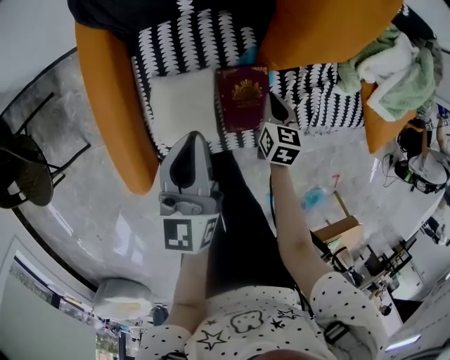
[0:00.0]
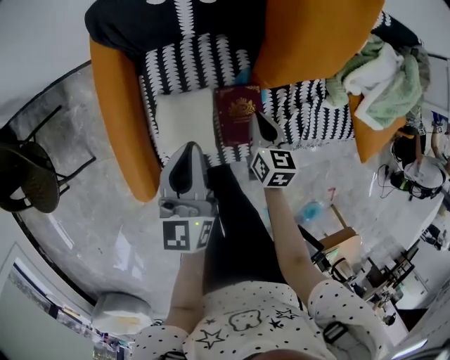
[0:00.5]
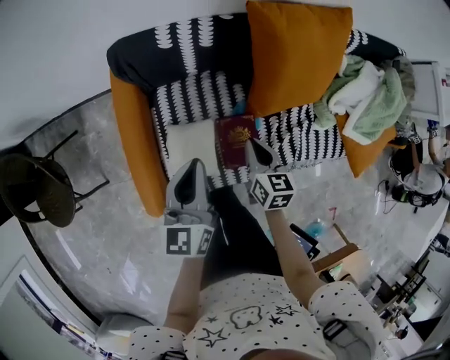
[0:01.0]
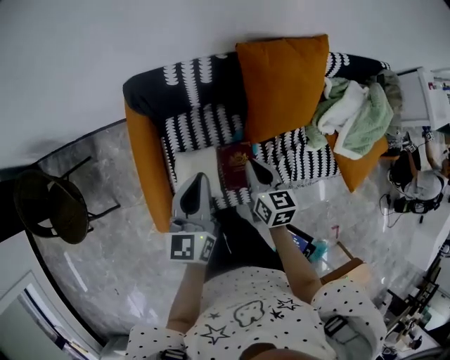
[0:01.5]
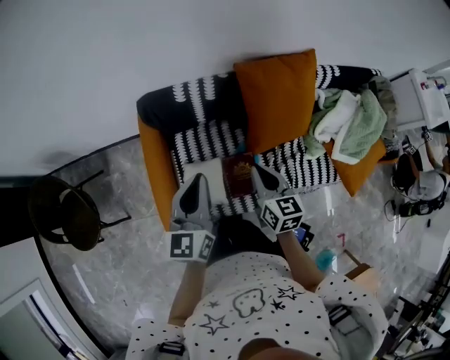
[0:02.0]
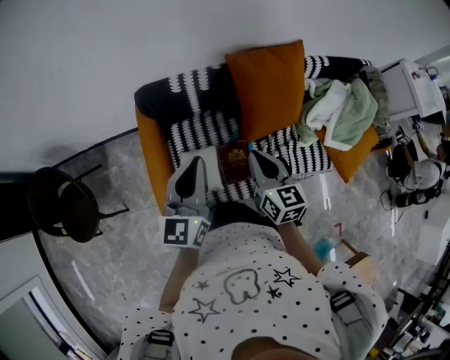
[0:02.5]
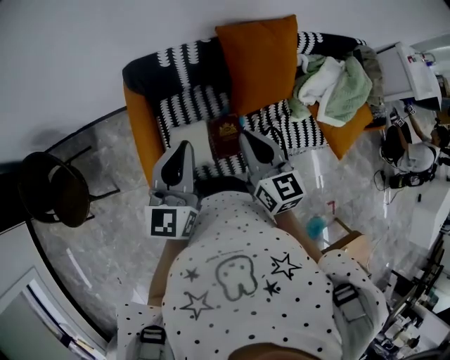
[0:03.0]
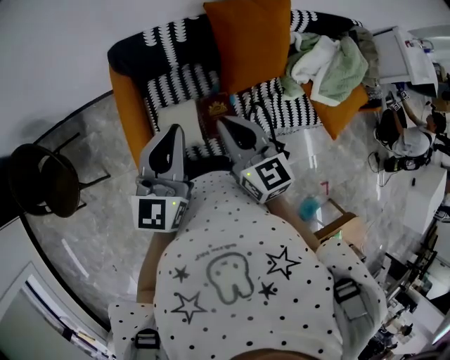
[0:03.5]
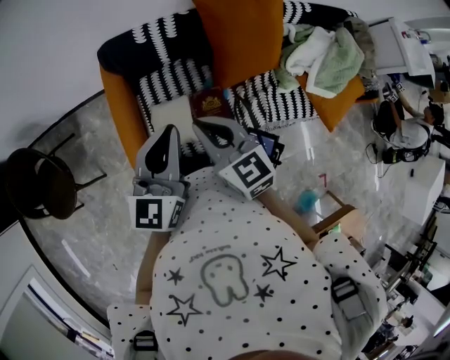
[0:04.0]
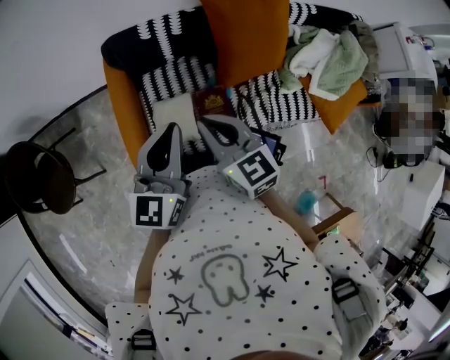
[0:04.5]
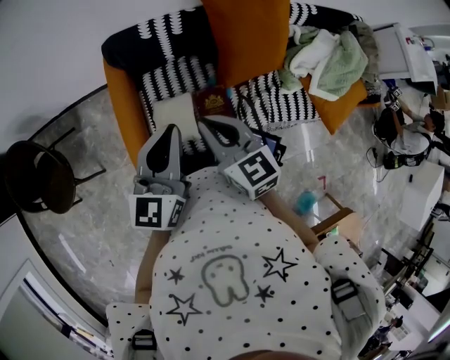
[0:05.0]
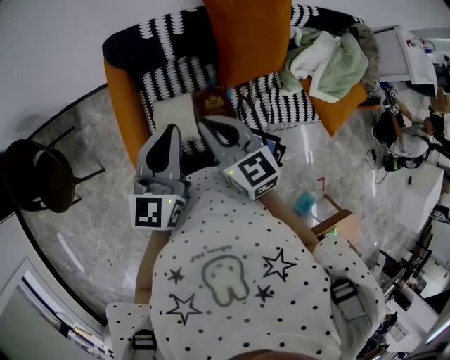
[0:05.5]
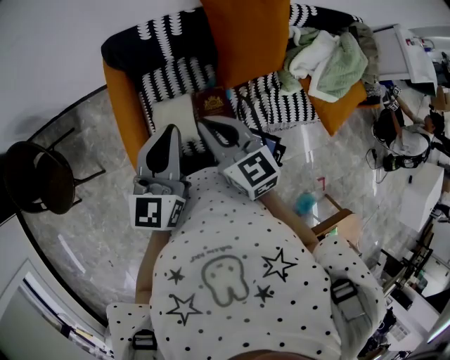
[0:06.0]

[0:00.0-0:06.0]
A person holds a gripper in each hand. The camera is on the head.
0:00.0 to 0:02.0: Both grippers travel together upward, approximately 30 cm. The right gripper rotates approximately 30 degrees.
0:02.0 to 0:04.0: The right gripper travels to the left, upward and backward by about 15 cm, and changes its angle by some 20 degrees, while the left gripper is displaced backward by about 10 cm.
0:04.0 to 0:06.0: Neither gripper changes place.

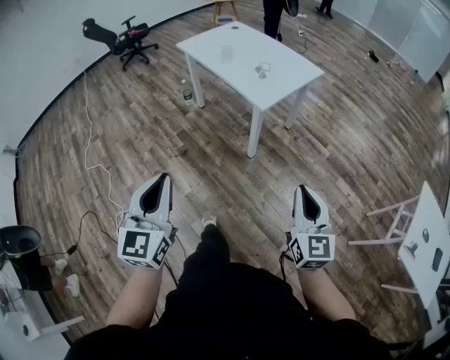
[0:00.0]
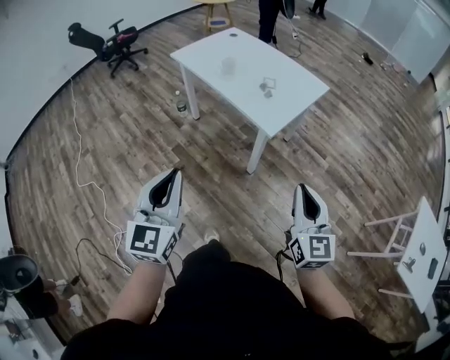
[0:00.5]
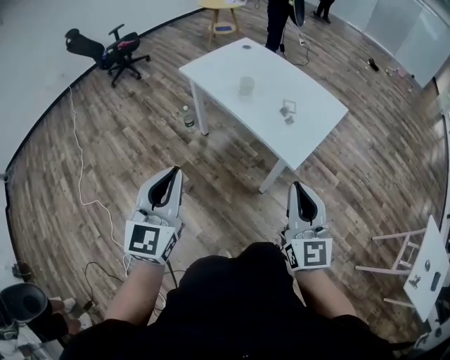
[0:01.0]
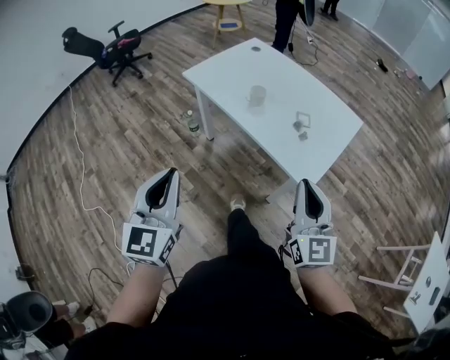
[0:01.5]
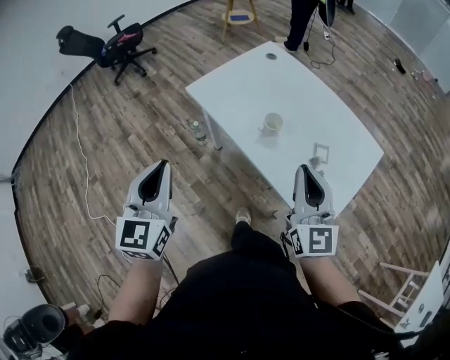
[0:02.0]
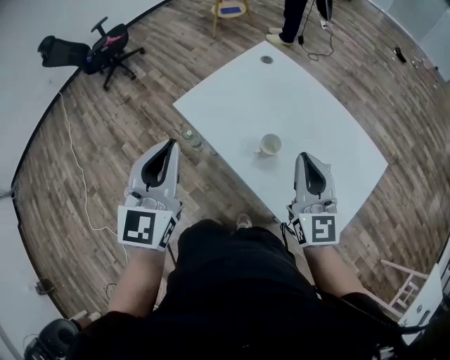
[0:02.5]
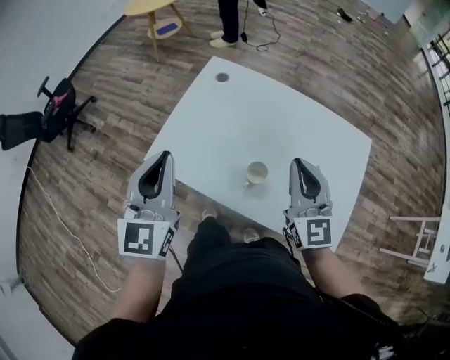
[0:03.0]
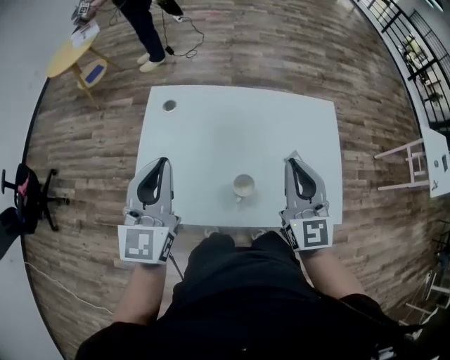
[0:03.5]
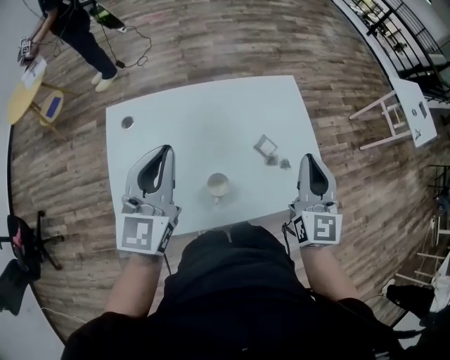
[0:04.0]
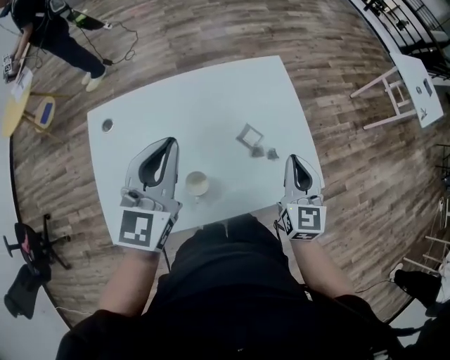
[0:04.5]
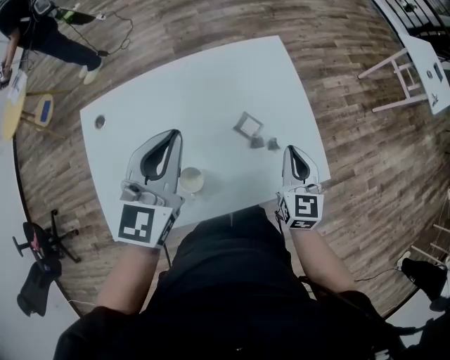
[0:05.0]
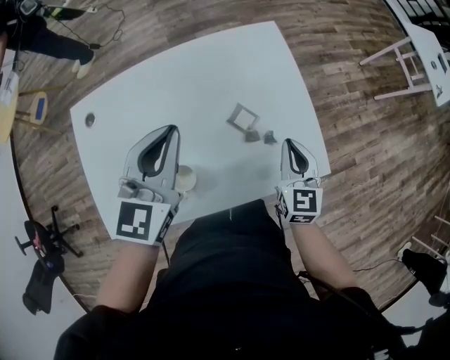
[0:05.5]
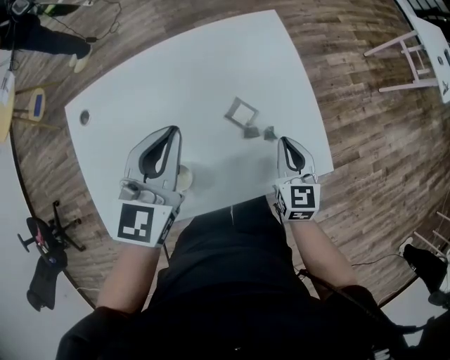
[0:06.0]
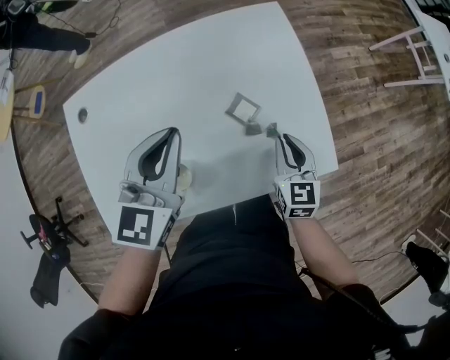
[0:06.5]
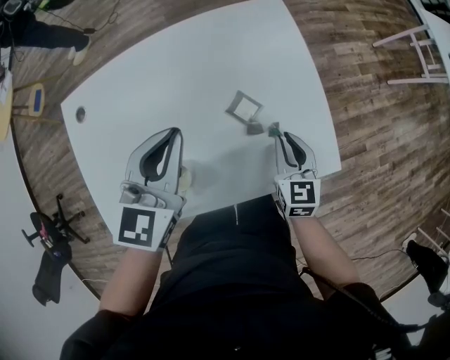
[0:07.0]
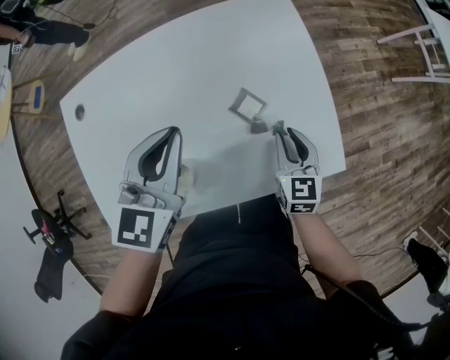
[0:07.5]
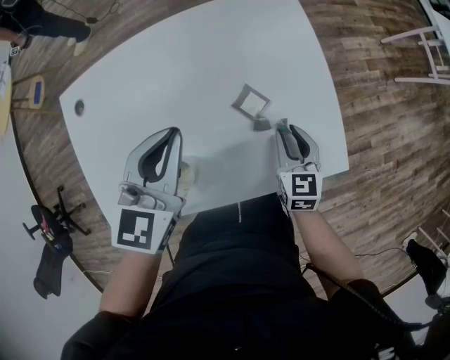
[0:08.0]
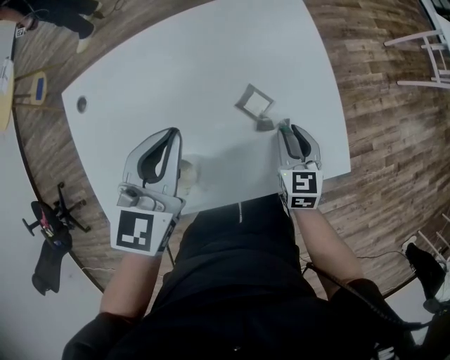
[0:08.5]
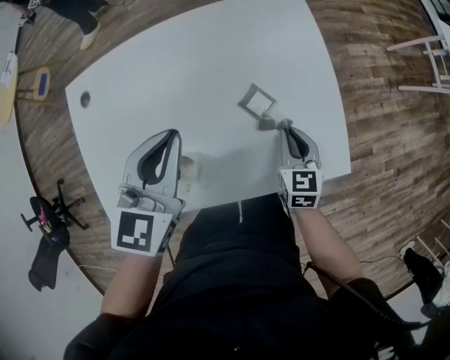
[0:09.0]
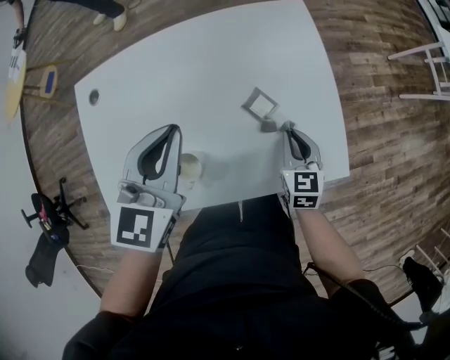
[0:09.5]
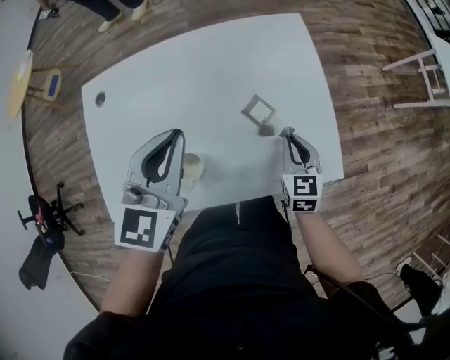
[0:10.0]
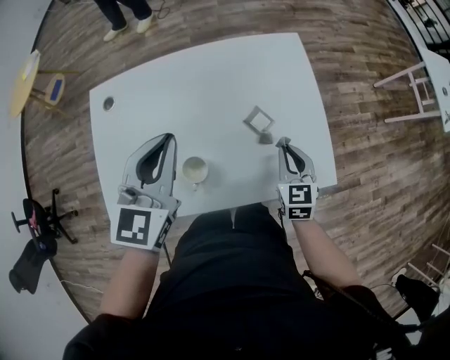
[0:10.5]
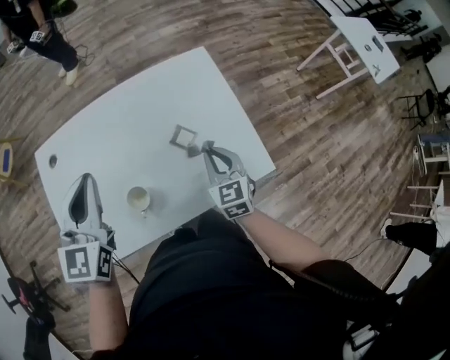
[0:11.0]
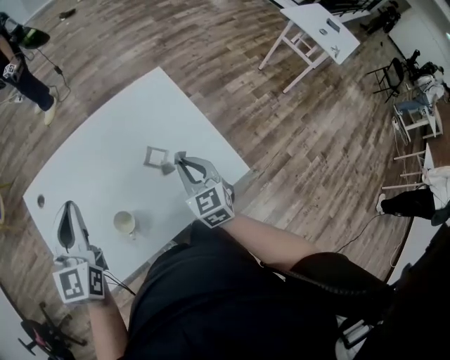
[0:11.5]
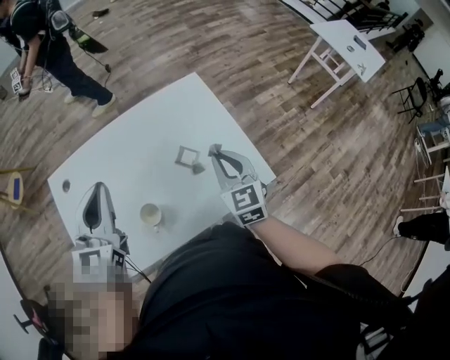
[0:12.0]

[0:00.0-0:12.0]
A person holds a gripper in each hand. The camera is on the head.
0:00.0 to 0:02.0: Both grippers are carried forward and to the left, roughly 60 cm.
0:02.0 to 0:04.0: The right gripper turns by approximately 70 degrees, while the left gripper moves some 40 cm, and changes its angle by roughly 70 degrees.
0:04.0 to 0:06.0: The right gripper goes about 20 cm downward, and rotates about 30 degrees. Meanwhile the left gripper travels to the right, forward and downward by some 15 cm, and swivels about 20 degrees.
0:06.0 to 0:08.0: The right gripper shifts some 5 cm downward, and opens.
0:08.0 to 0:10.0: The right gripper closes.
0:10.0 to 0:12.0: The right gripper is displaced upward by about 10 cm. Meanwhile the left gripper moves to the left, approximately 5 cm.

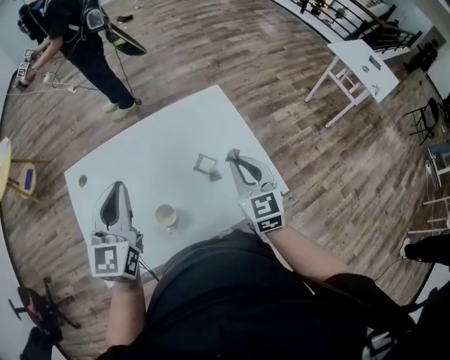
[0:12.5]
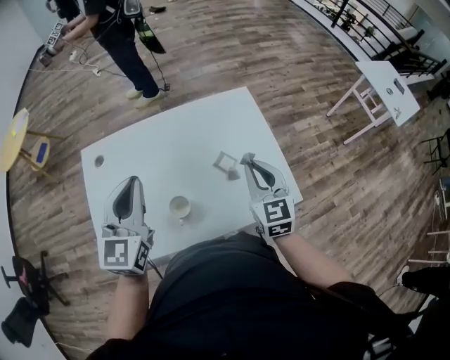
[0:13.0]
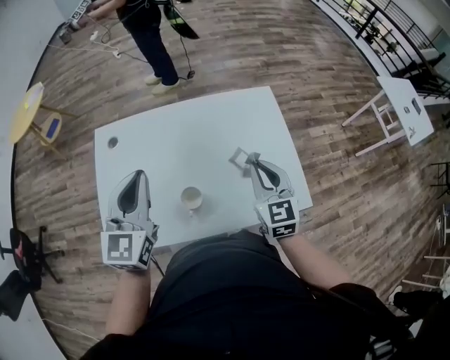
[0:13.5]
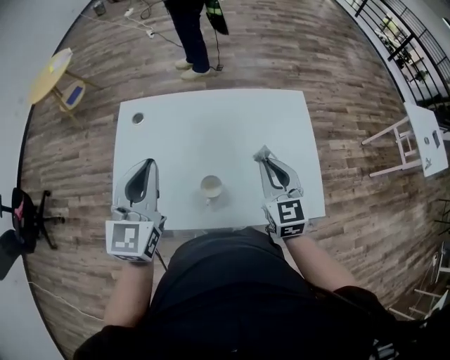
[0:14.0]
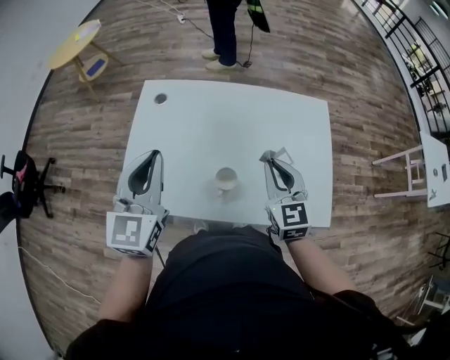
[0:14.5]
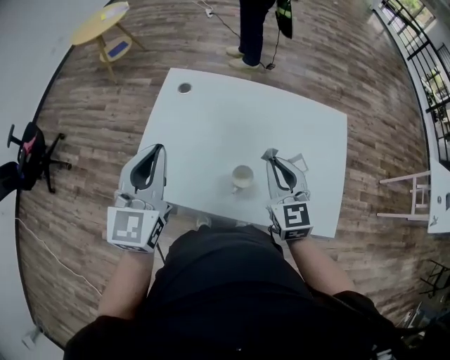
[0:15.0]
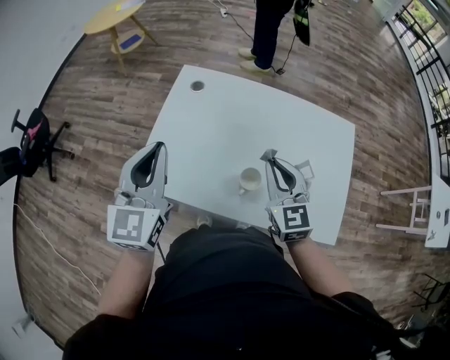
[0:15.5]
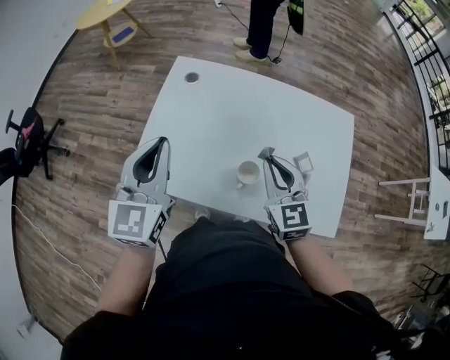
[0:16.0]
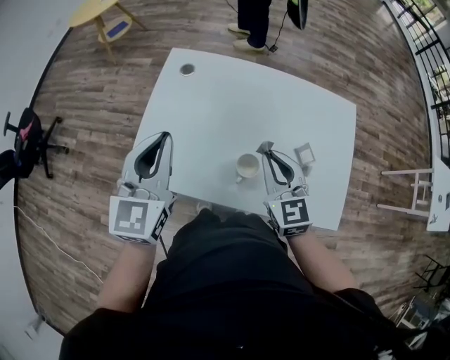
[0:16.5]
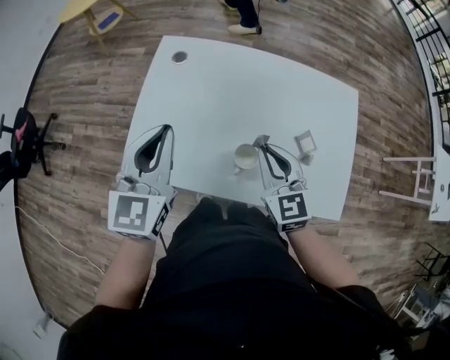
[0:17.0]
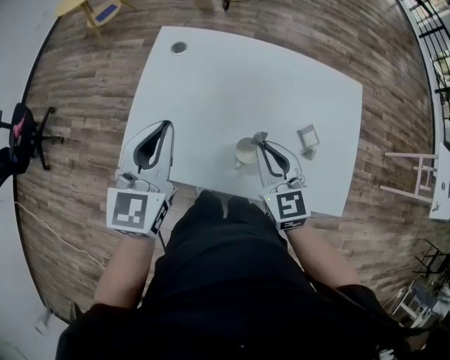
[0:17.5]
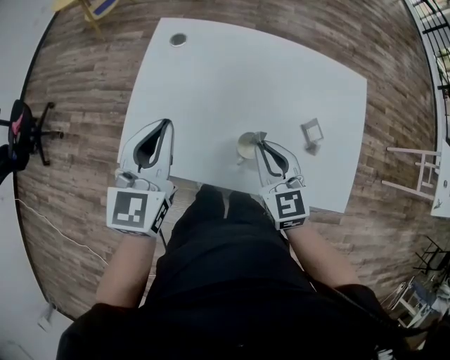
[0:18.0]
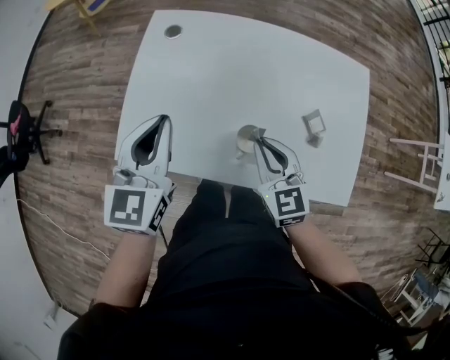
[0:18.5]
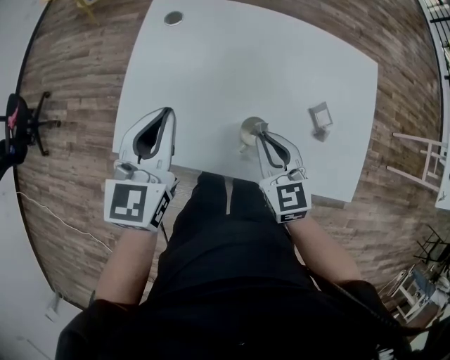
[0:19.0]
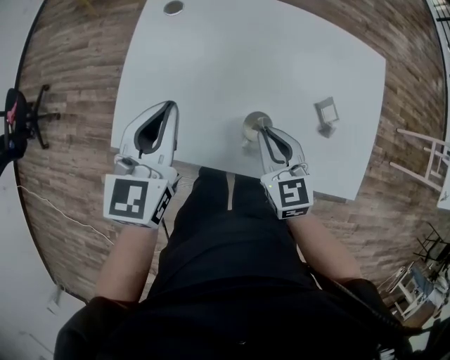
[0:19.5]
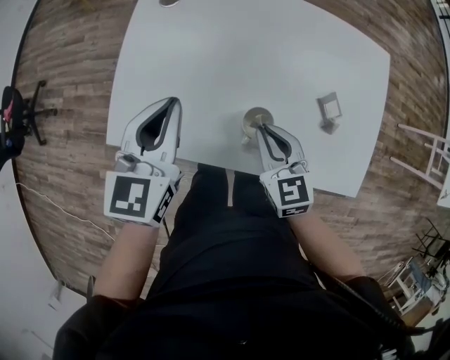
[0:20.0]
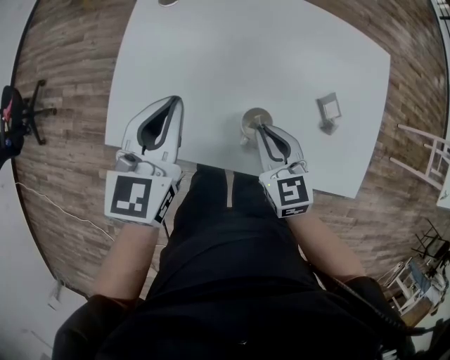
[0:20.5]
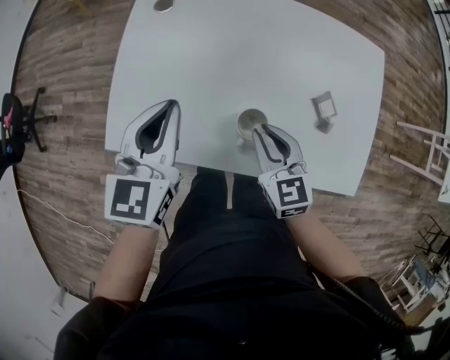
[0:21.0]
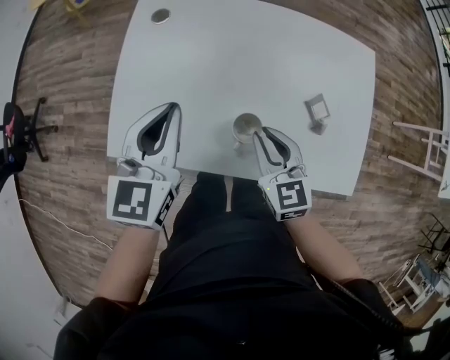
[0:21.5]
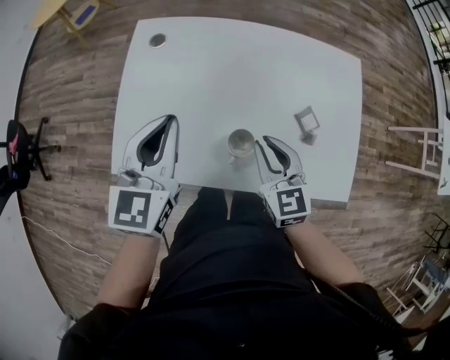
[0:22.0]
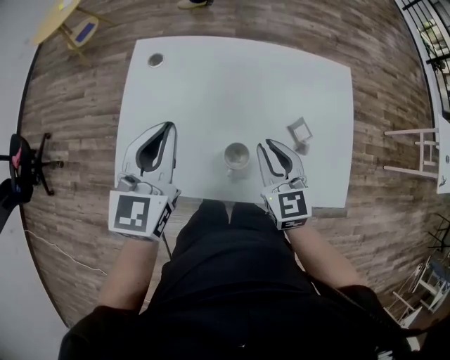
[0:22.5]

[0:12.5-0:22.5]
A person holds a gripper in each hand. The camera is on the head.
0:12.5 to 0:14.5: The left gripper moves to the left and backward, approximately 15 cm, and changes its angle by some 20 degrees. The right gripper shifts roughly 15 cm to the left, and changes its angle by approximately 20 degrees.
0:14.5 to 0:16.5: The right gripper goes about 10 cm to the left.
0:16.5 to 0:18.5: The two grippers go some 5 cm downward.
0:18.5 to 0:20.5: The grippers stay close to where they were, moving slightly.
0:20.5 to 0:22.5: The right gripper heads upward and to the right, covering roughly 10 cm. The left gripper shifts about 5 cm upward.
